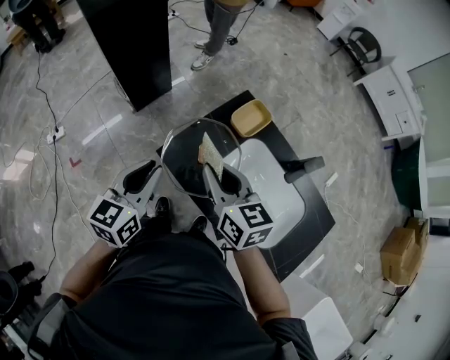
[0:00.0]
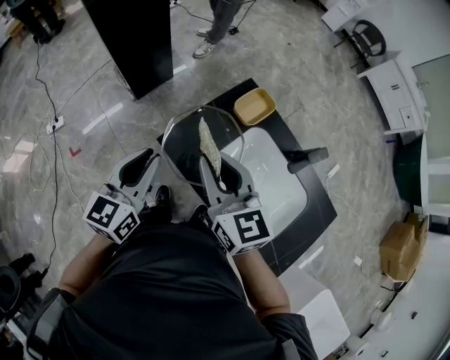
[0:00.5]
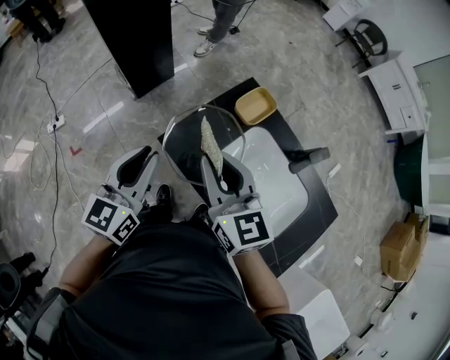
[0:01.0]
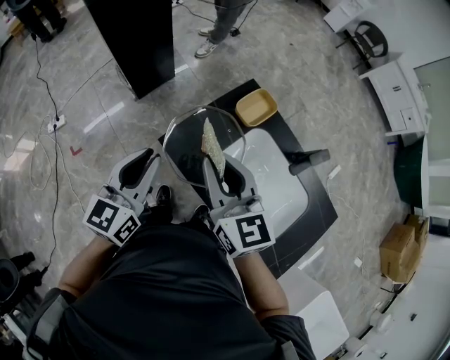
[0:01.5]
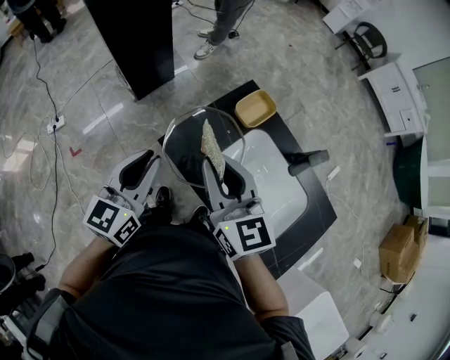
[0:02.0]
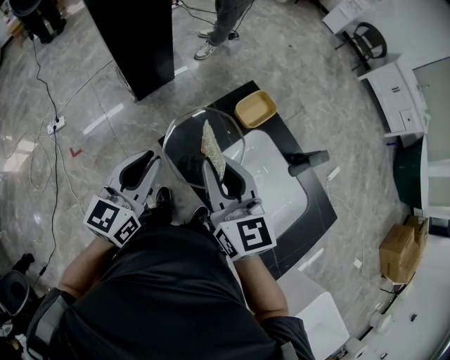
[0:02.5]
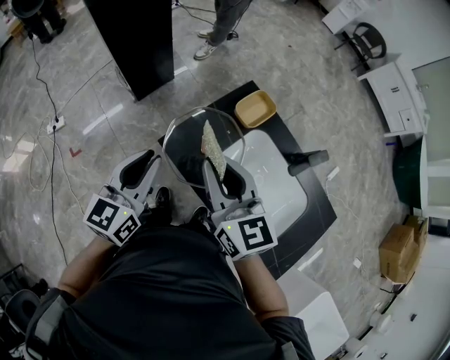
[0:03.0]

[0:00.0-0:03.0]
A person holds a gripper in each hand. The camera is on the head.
0:00.0 to 0:01.5: The right gripper goes about 5 cm upward.
0:01.5 to 0:03.0: Both grippers stay about where they are.

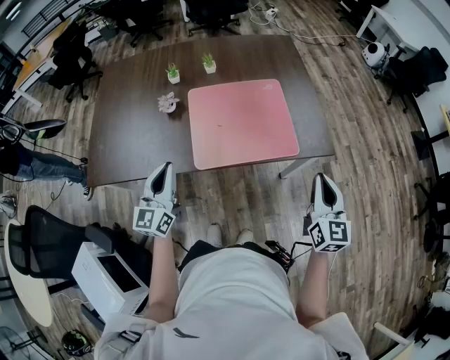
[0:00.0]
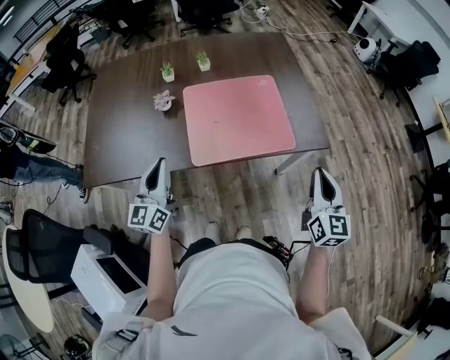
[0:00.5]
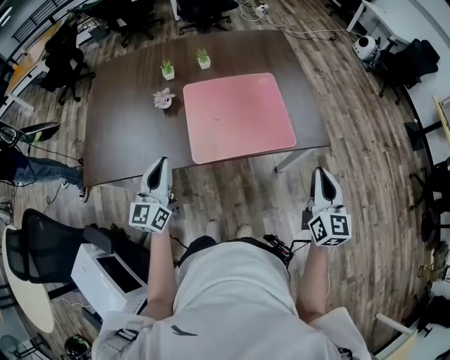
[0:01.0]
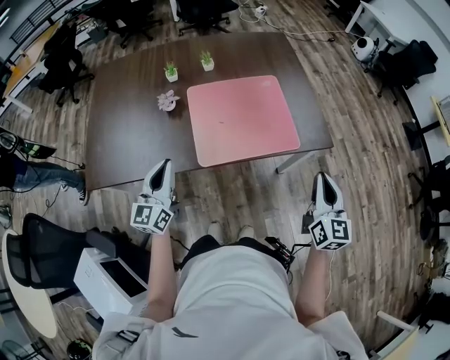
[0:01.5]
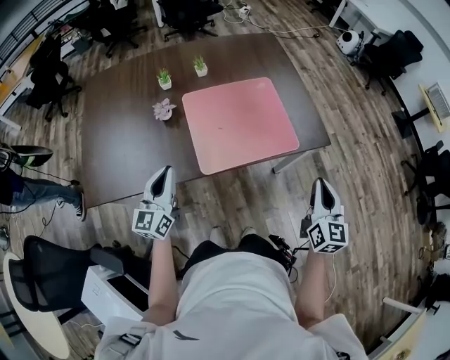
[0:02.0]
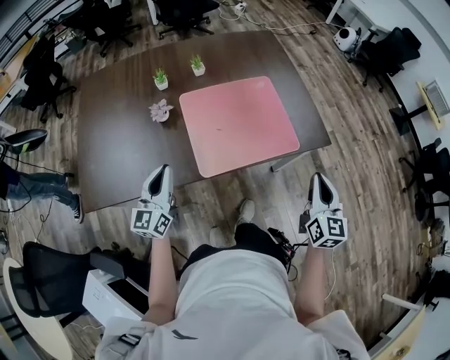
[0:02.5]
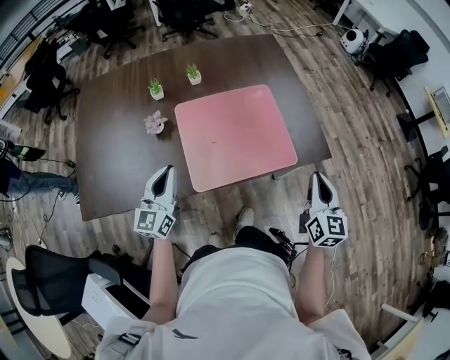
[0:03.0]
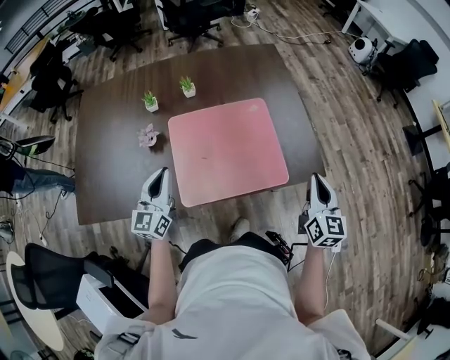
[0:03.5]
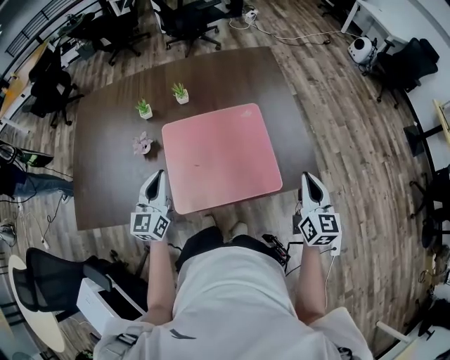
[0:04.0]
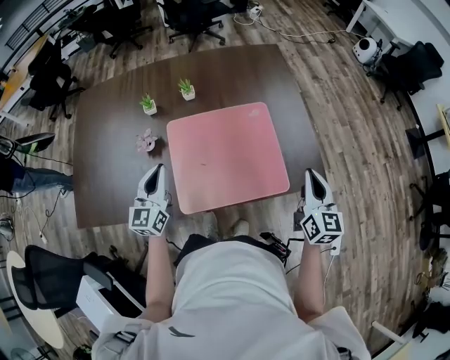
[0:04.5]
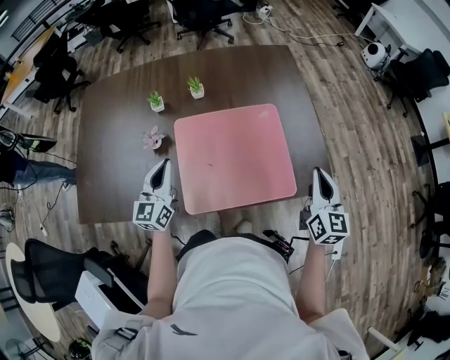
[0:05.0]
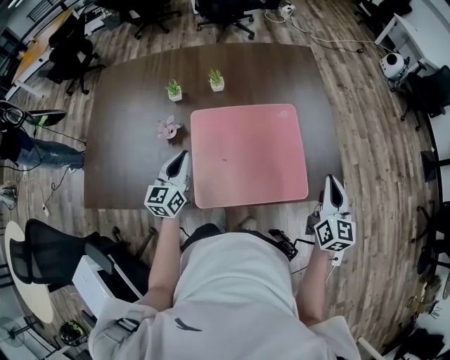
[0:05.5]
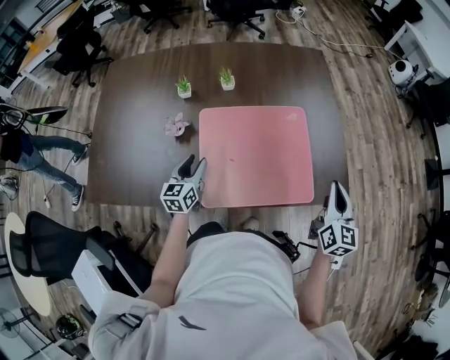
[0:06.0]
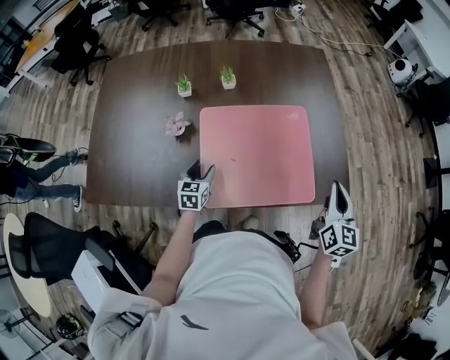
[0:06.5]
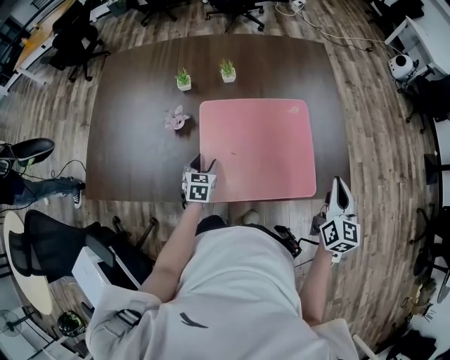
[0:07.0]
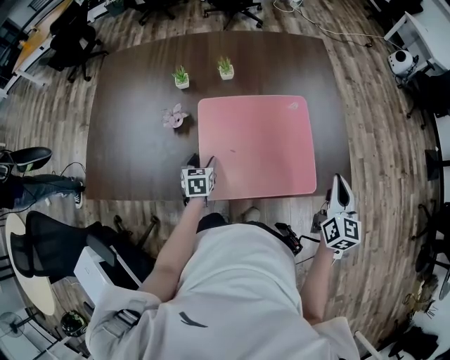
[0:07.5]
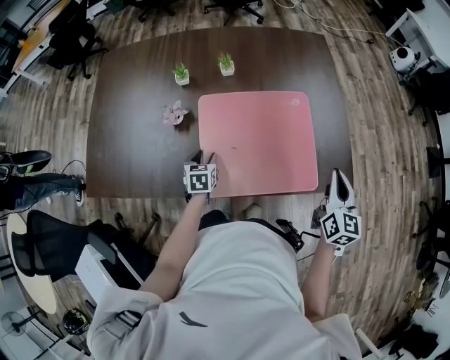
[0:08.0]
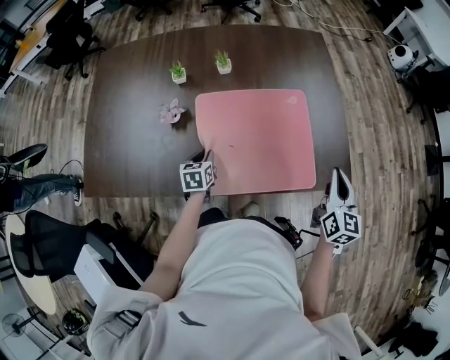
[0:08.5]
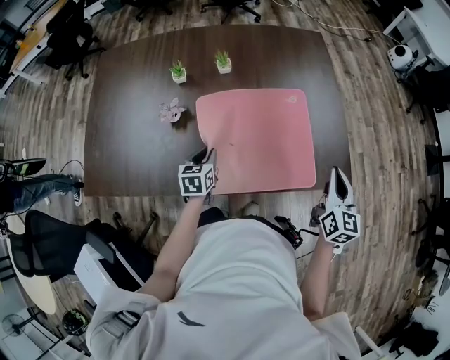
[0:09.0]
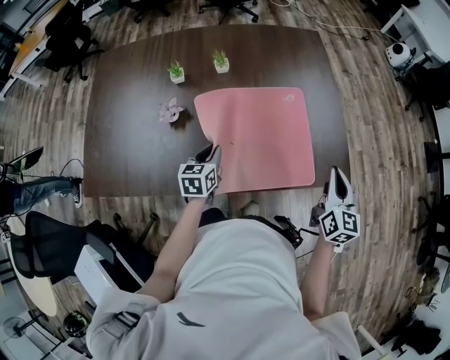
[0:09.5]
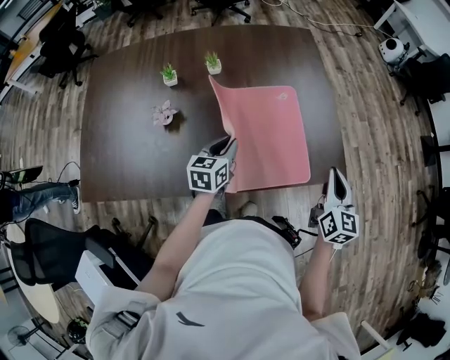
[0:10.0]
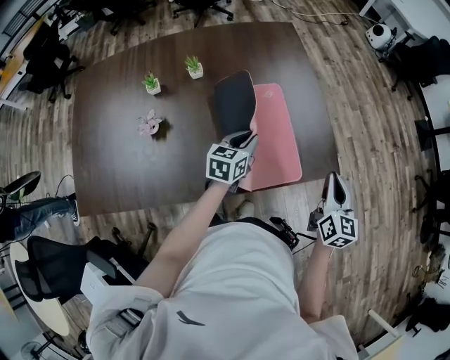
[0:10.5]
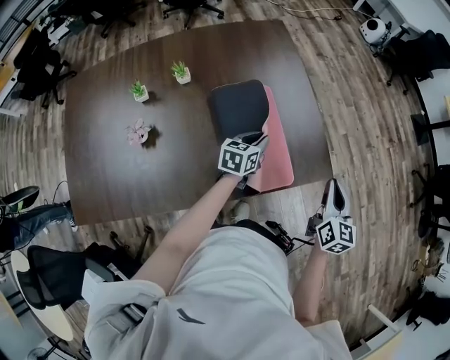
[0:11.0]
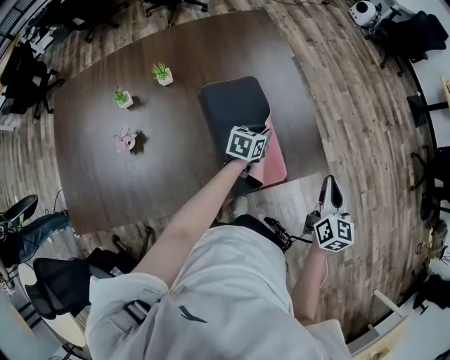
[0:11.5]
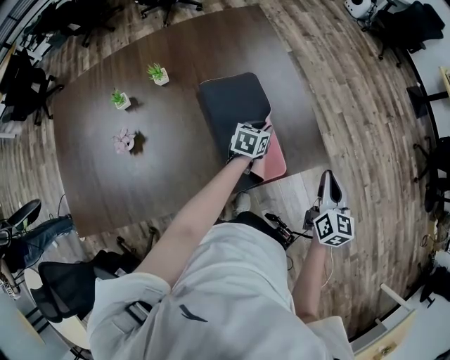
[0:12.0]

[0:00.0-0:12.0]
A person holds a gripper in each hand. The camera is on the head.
0:00.0 to 0:02.0: The right gripper ends up approximately 5 cm from where it was, while the left gripper moves to the left, approximately 5 cm.
0:02.0 to 0:04.0: The left gripper heads forward and to the right, covering some 15 cm; the right gripper is displaced forward by some 20 cm.
0:04.0 to 0:06.0: The right gripper changes place by approximately 5 cm. The left gripper goes approximately 15 cm downward, changes its angle by roughly 20 degrees, and opens up.
0:06.0 to 0:08.0: The left gripper is displaced downward by about 10 cm, and rotates approximately 30 degrees.
0:08.0 to 0:10.0: The left gripper heads to the right and upward, covering some 15 cm, turns by about 30 degrees, and closes its fingers.
0:10.0 to 0:12.0: The right gripper travels to the right by approximately 10 cm. The left gripper moves to the right, forward and downward, about 30 cm, and swivels roughly 30 degrees.

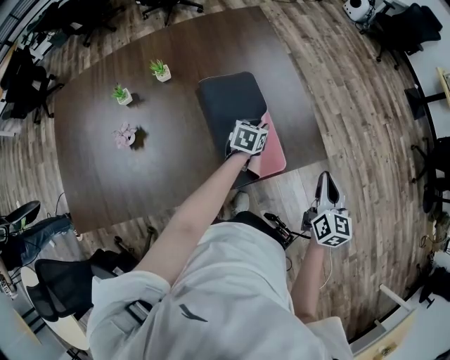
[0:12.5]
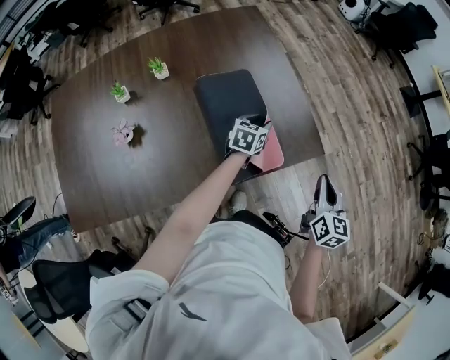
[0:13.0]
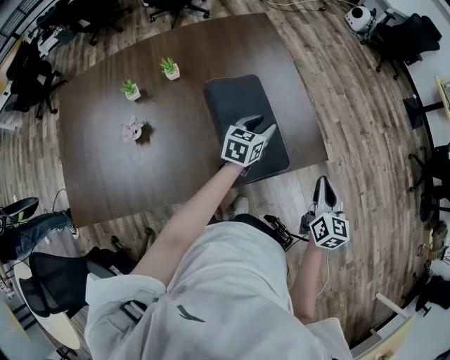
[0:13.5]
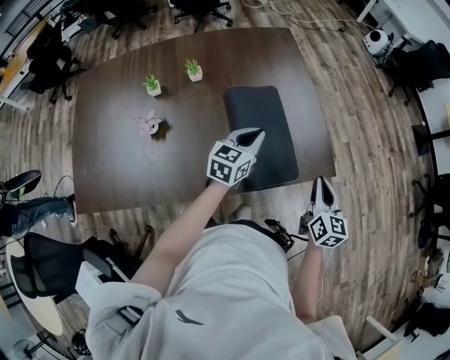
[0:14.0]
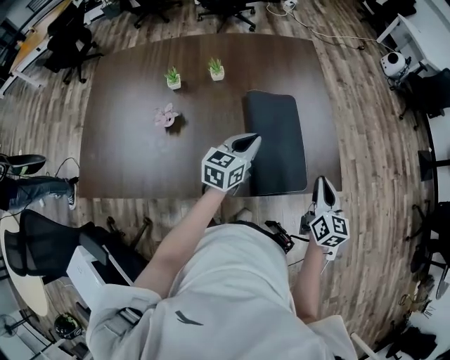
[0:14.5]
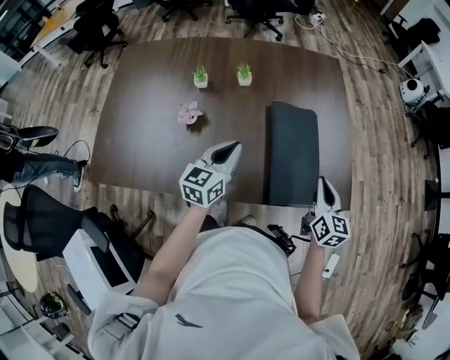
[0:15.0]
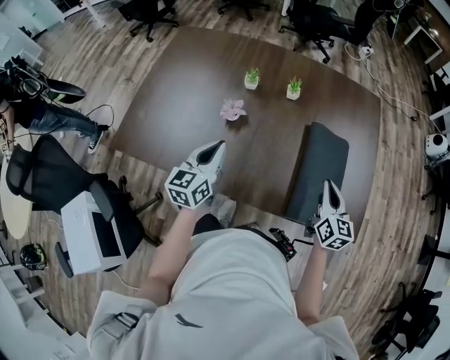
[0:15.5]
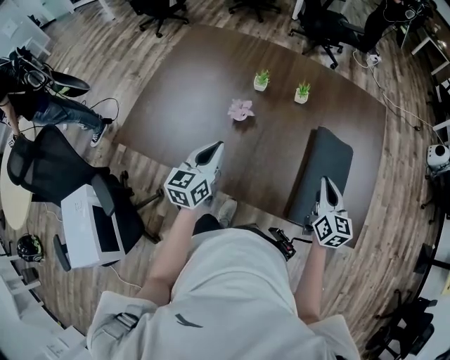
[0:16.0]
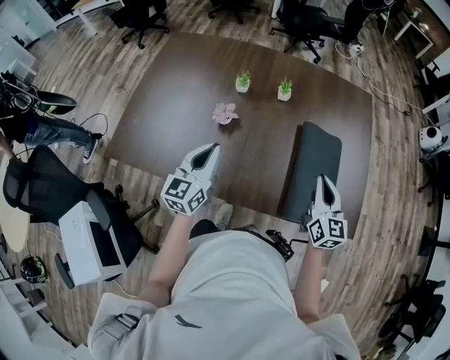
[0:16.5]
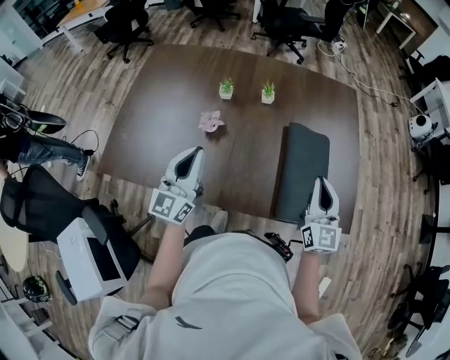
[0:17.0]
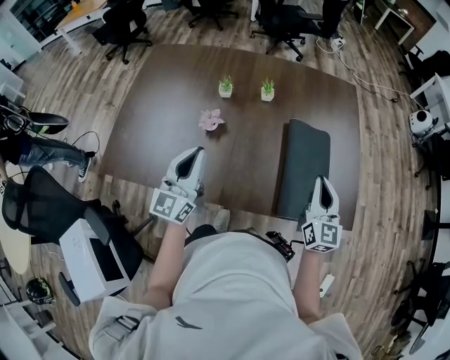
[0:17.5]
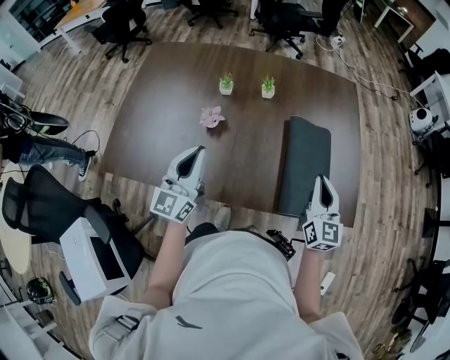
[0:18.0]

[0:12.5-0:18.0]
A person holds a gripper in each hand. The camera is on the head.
0:12.5 to 0:14.5: The right gripper travels to the left by some 10 cm. The left gripper is displaced upward, to the left and backward by about 25 cm, rotates some 30 degrees, and closes.
0:14.5 to 0:16.0: The left gripper ends up approximately 30 cm from where it was, and rotates about 40 degrees; the right gripper shifts by some 20 cm, and swivels about 30 degrees.
0:16.0 to 0:18.0: The left gripper goes approximately 5 cm upward, and rotates some 30 degrees; the right gripper changes place by about 10 cm.

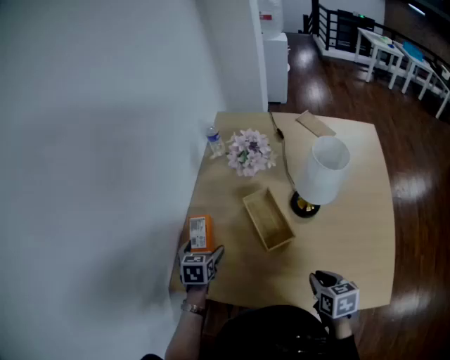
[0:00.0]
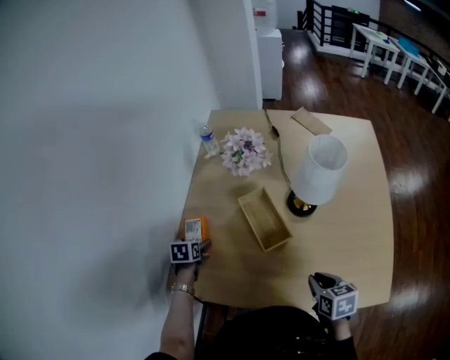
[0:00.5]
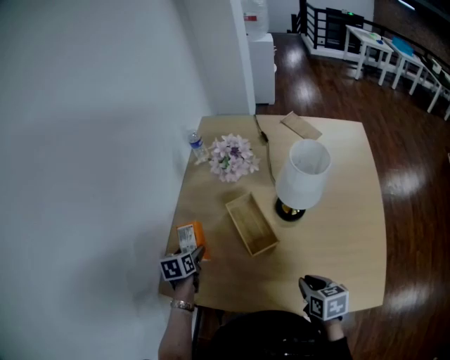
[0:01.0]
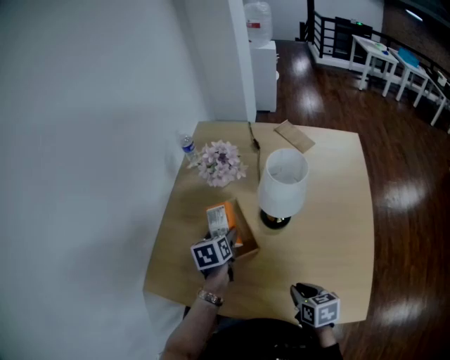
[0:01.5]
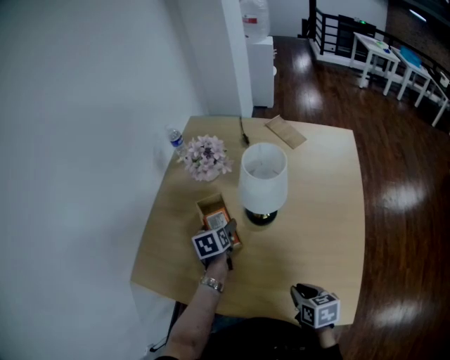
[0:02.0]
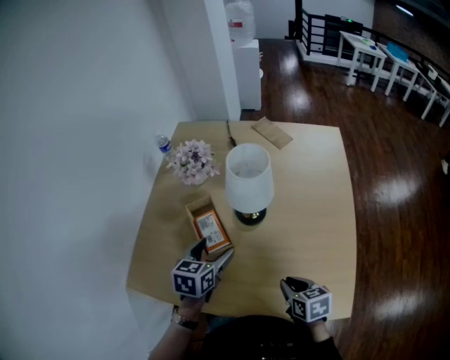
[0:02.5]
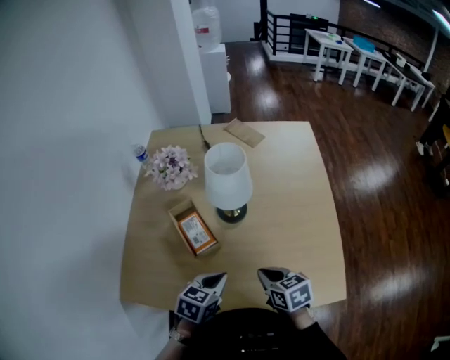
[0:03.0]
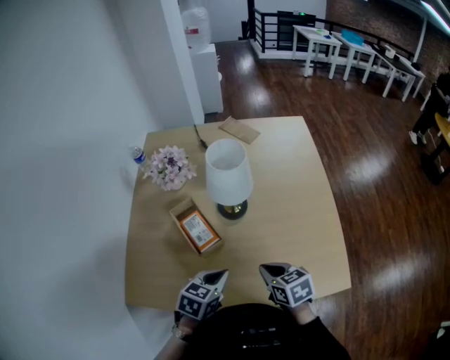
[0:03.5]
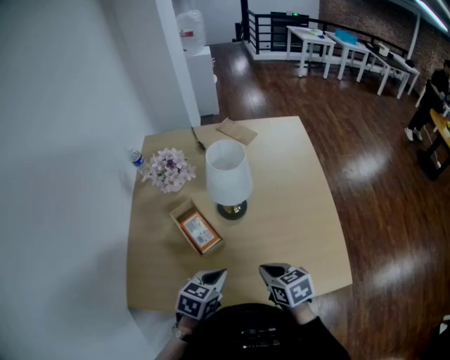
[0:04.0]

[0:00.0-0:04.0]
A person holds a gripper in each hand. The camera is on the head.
0:00.0 to 0:02.0: The left gripper is displaced to the right by about 25 cm, and swivels roughly 20 degrees; the right gripper travels to the right by roughly 10 cm.
0:02.0 to 0:04.0: The left gripper moves some 20 cm, turns by about 60 degrees, and closes up. The right gripper shifts by roughly 10 cm.

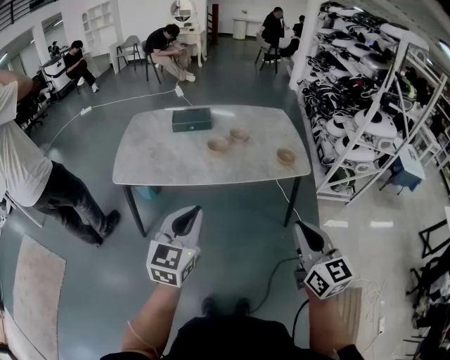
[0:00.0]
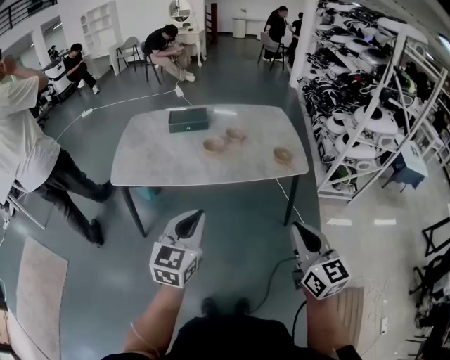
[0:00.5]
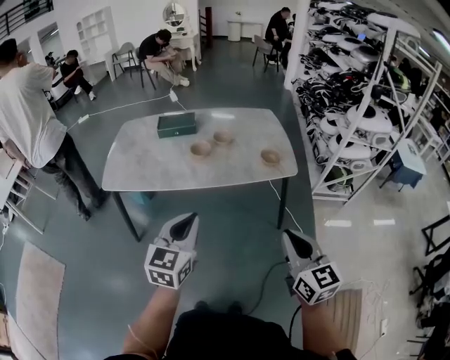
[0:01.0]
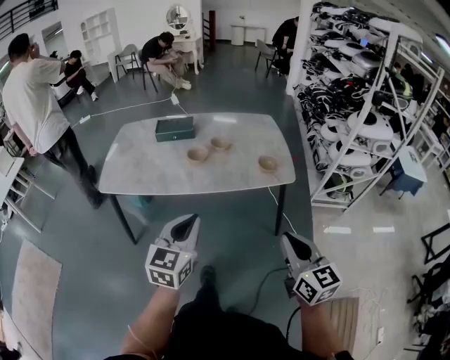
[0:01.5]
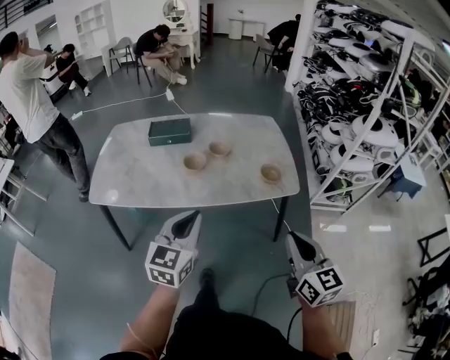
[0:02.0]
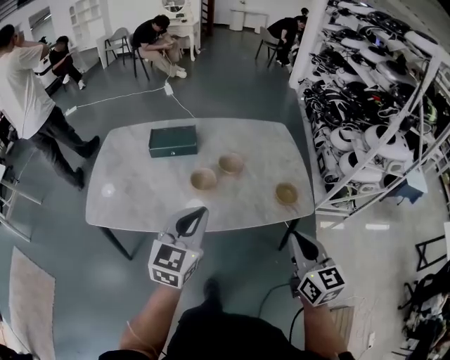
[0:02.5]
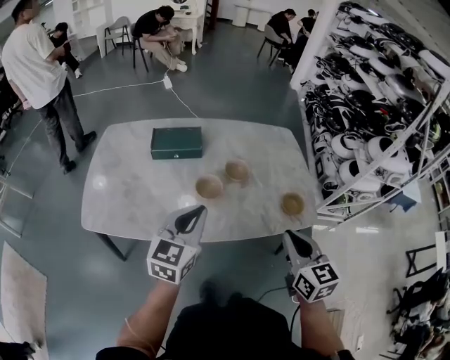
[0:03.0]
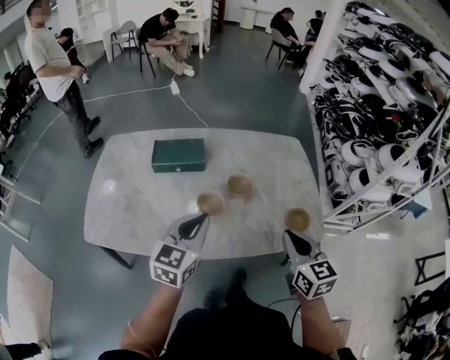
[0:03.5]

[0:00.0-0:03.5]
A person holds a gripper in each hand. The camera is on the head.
0:00.0 to 0:02.0: Both grippers travel together forward and to the right, approximately 20 cm.
0:02.0 to 0:03.5: Both grippers travel together forward, some 30 cm.
